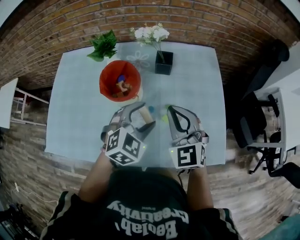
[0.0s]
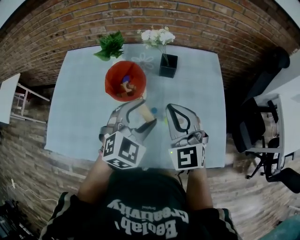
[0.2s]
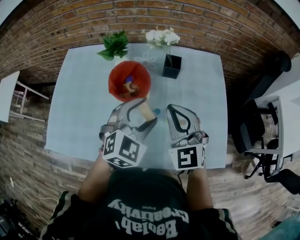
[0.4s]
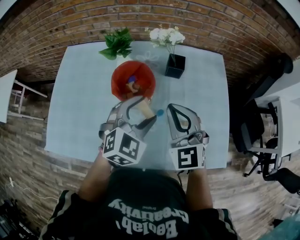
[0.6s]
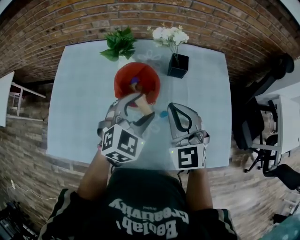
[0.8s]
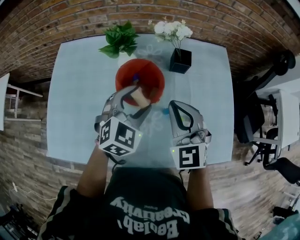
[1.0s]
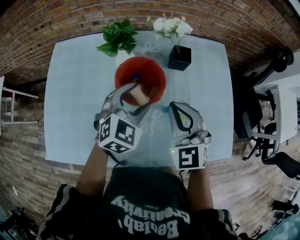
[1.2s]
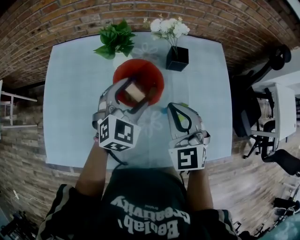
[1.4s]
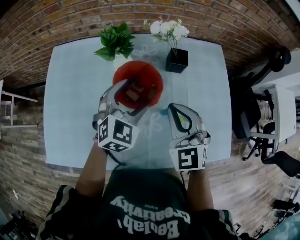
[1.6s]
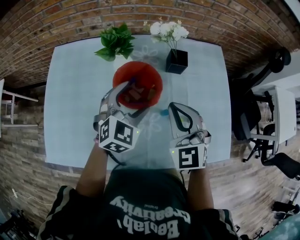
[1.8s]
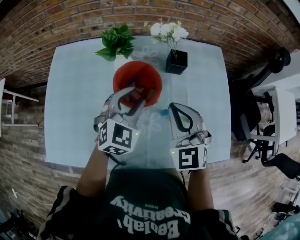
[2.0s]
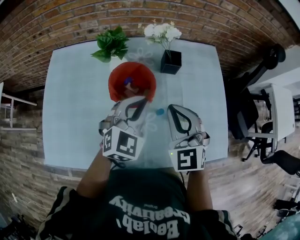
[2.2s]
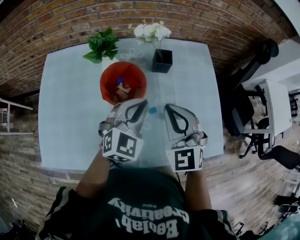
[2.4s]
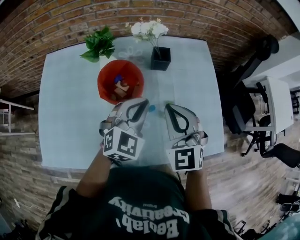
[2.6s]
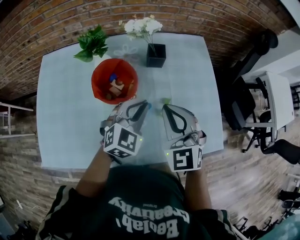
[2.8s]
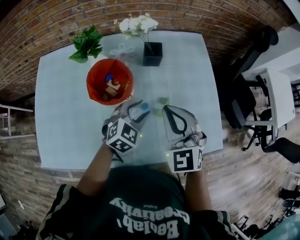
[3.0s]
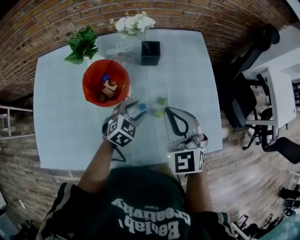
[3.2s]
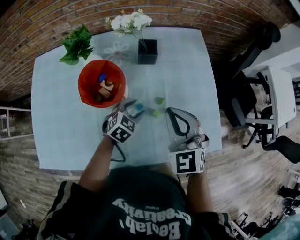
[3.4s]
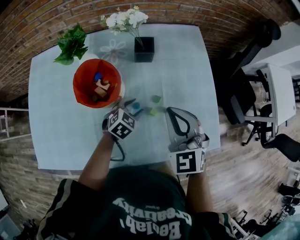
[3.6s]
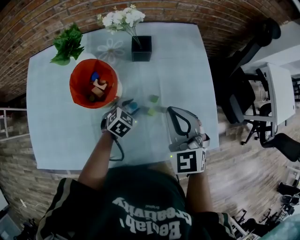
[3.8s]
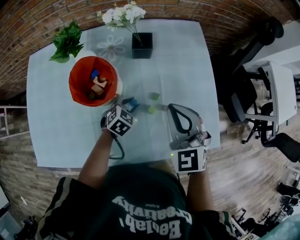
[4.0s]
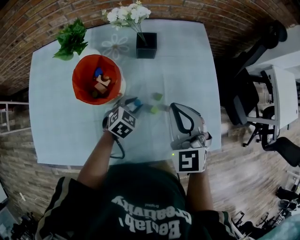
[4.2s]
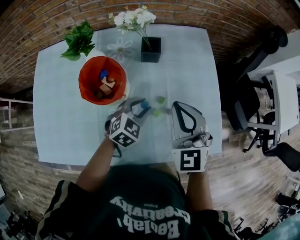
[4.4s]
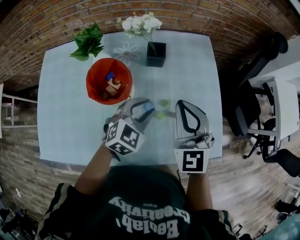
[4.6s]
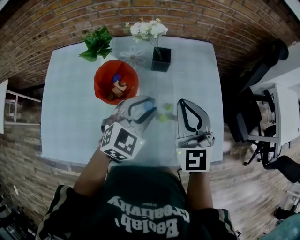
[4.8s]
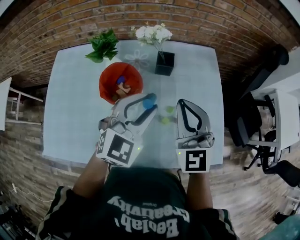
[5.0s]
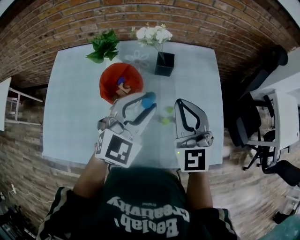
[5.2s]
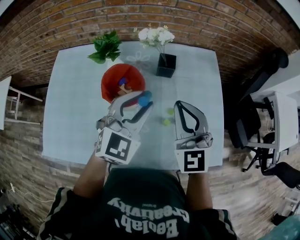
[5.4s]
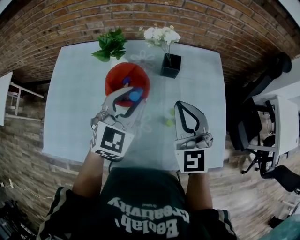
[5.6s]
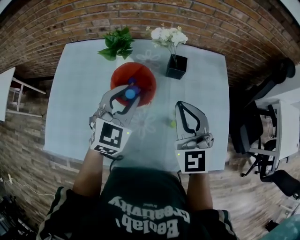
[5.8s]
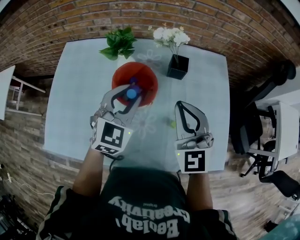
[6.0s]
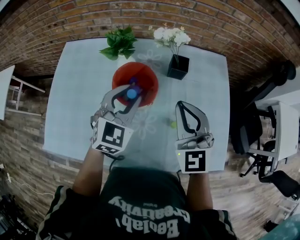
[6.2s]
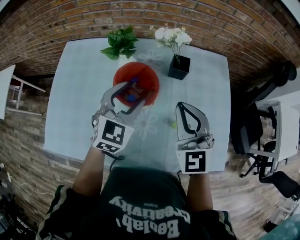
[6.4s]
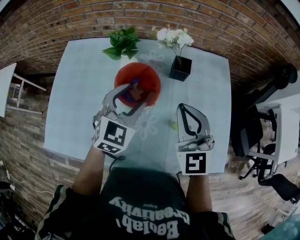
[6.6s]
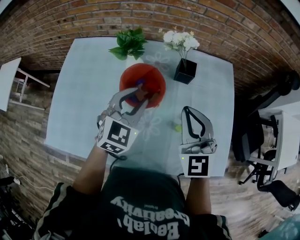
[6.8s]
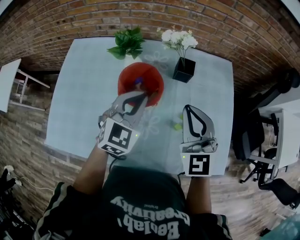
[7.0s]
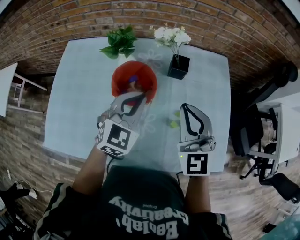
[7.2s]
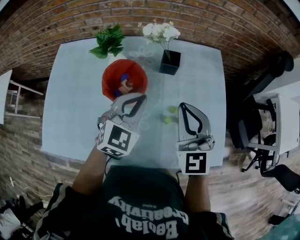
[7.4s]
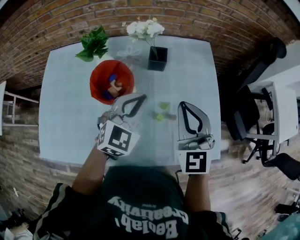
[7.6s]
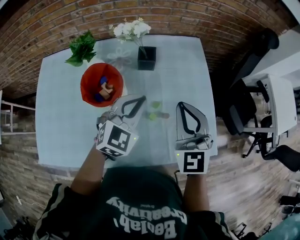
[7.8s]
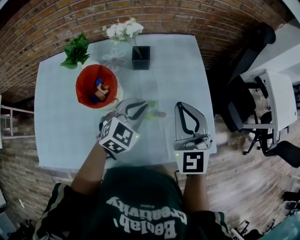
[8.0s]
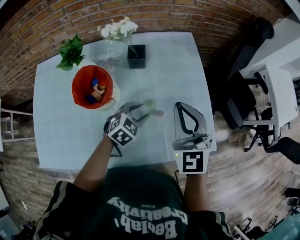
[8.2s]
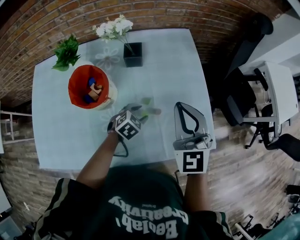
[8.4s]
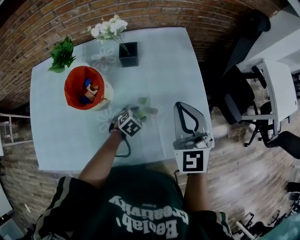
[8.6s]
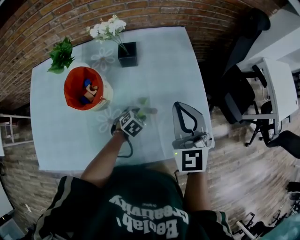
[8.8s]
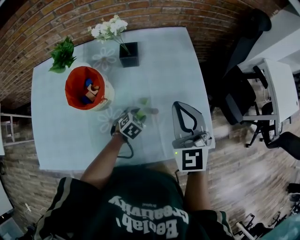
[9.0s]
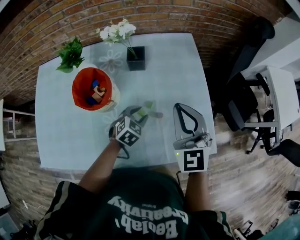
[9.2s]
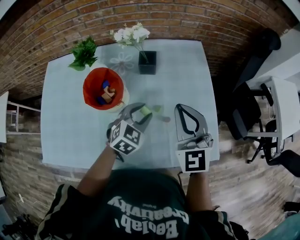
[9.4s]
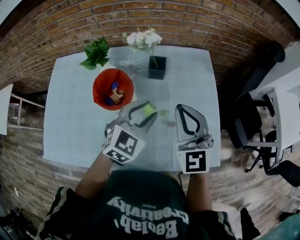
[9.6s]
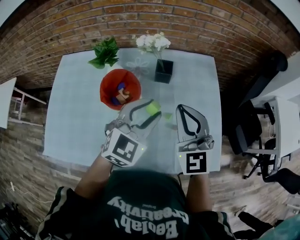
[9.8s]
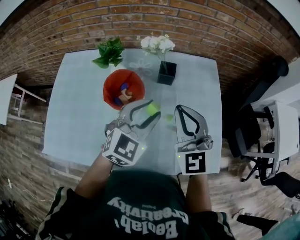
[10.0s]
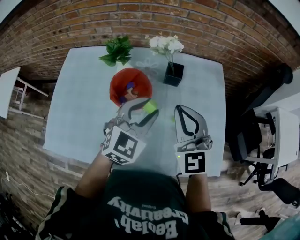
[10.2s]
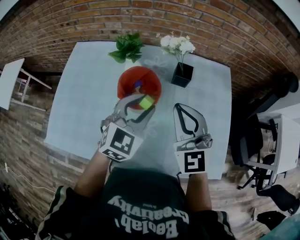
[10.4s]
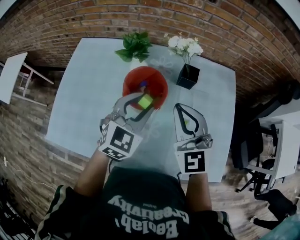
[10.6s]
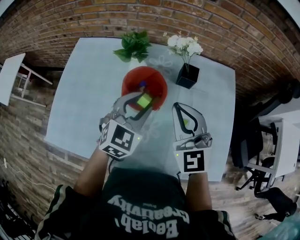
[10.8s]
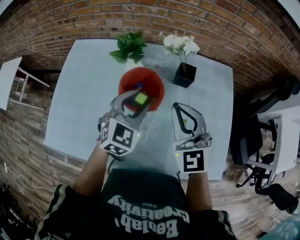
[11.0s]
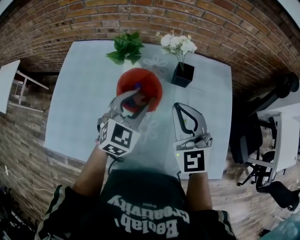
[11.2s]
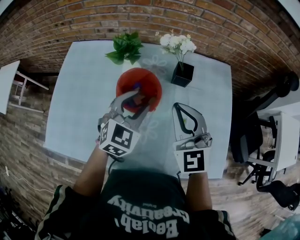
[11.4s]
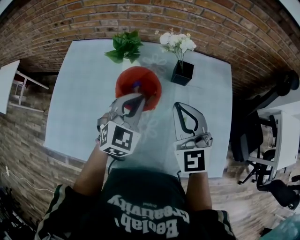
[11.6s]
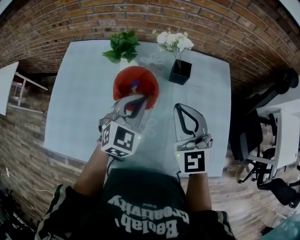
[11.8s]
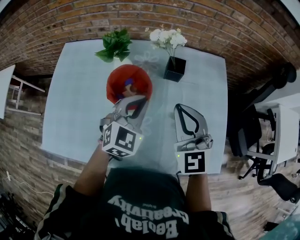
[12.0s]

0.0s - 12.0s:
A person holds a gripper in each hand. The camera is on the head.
0.0s - 1.6s: The right gripper travels to the left by some 10 cm. The left gripper travels to the left and forward by some 20 cm.
1.6s - 3.0s: The right gripper travels to the right by some 10 cm, while the left gripper travels to the right and downward by roughly 15 cm, and closes its fingers.
3.0s - 4.4s: The left gripper travels downward and back again, approximately 15 cm each way; the right gripper moves to the right, approximately 5 cm.
4.4s - 6.0s: The right gripper goes approximately 10 cm to the left and upward; the left gripper shifts approximately 25 cm upward and to the left, and rotates roughly 30 degrees.
6.0s - 7.6s: The two grippers go roughly 10 cm to the right. The left gripper closes.
7.6s - 9.0s: The right gripper travels to the right by roughly 10 cm; the left gripper goes about 25 cm downward, angles its fingers downward, by approximately 40 degrees, and opens up.
9.0s - 10.4s: The right gripper moves to the left, approximately 20 cm, and turns by approximately 20 degrees. The left gripper is displaced upward and to the left by about 35 cm, and points its fingers some 40 degrees further upward.
10.4s - 12.0s: The left gripper closes.

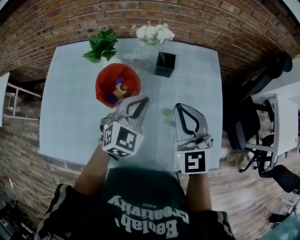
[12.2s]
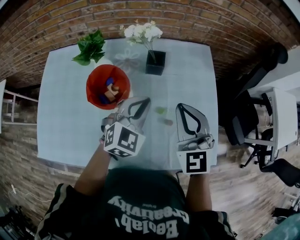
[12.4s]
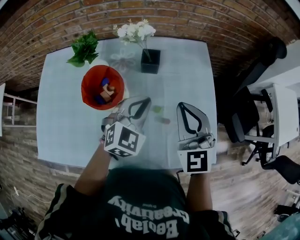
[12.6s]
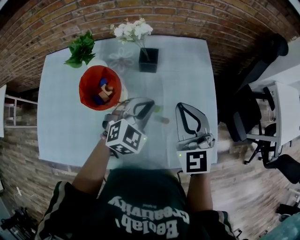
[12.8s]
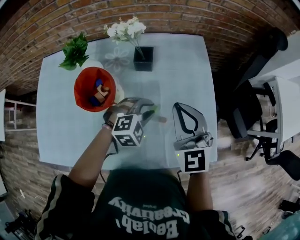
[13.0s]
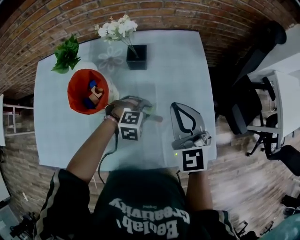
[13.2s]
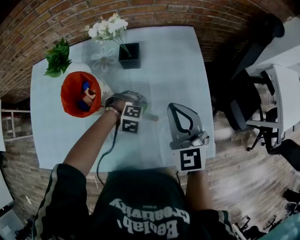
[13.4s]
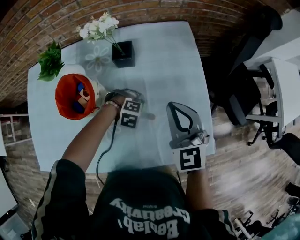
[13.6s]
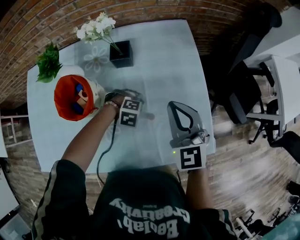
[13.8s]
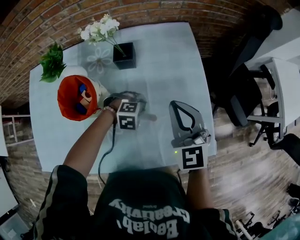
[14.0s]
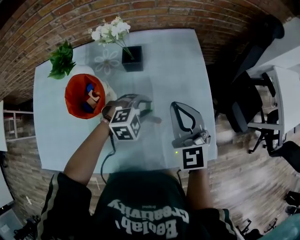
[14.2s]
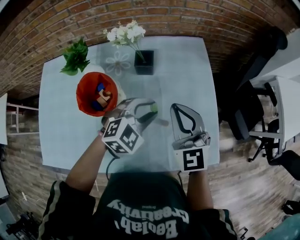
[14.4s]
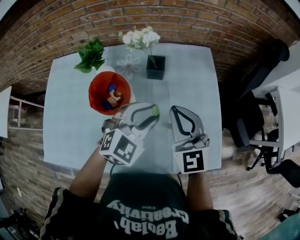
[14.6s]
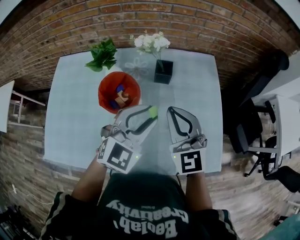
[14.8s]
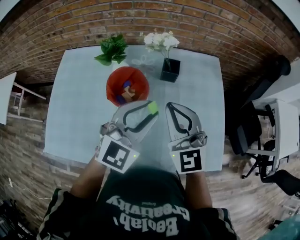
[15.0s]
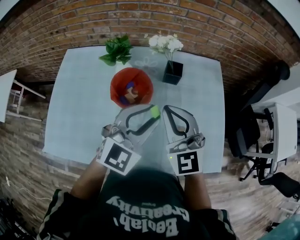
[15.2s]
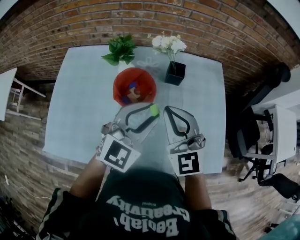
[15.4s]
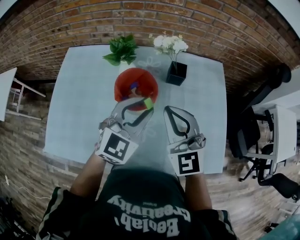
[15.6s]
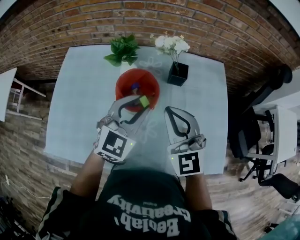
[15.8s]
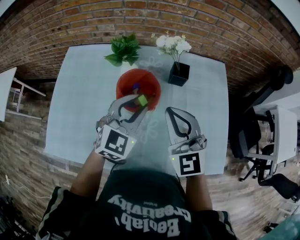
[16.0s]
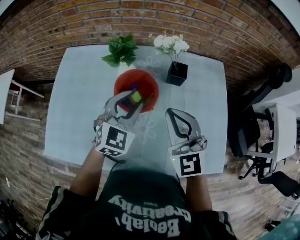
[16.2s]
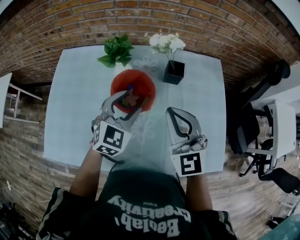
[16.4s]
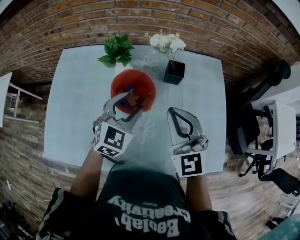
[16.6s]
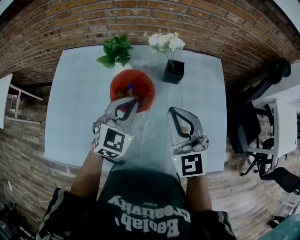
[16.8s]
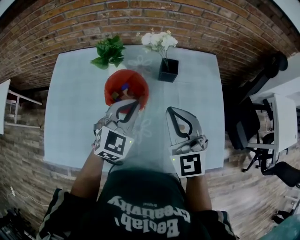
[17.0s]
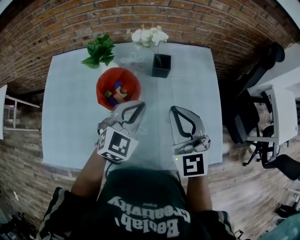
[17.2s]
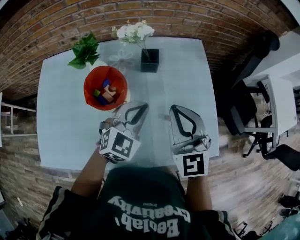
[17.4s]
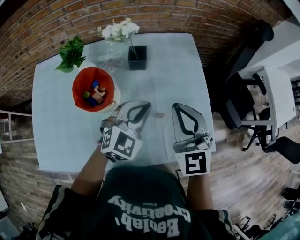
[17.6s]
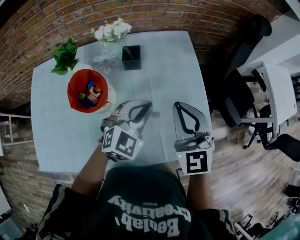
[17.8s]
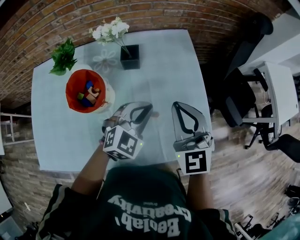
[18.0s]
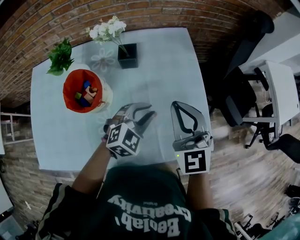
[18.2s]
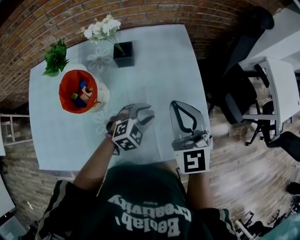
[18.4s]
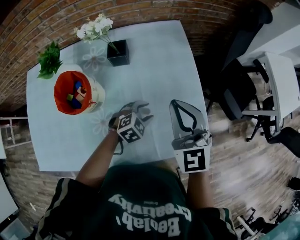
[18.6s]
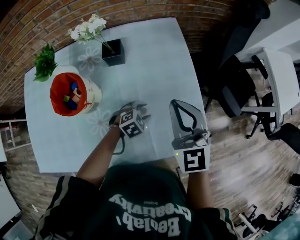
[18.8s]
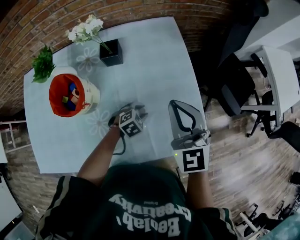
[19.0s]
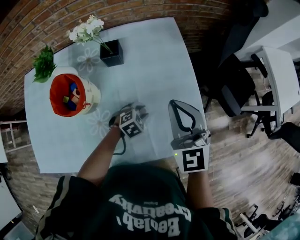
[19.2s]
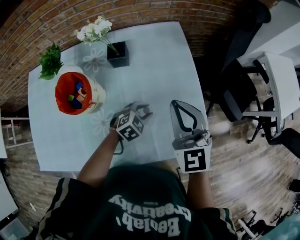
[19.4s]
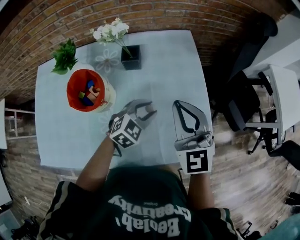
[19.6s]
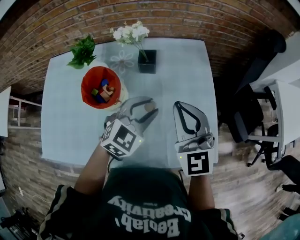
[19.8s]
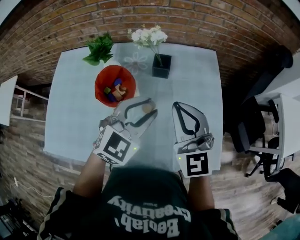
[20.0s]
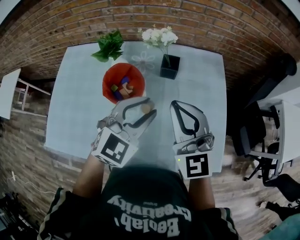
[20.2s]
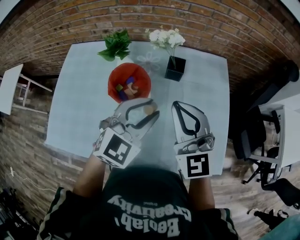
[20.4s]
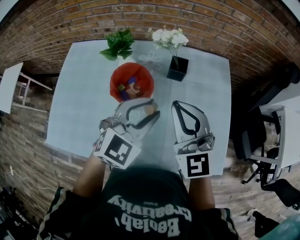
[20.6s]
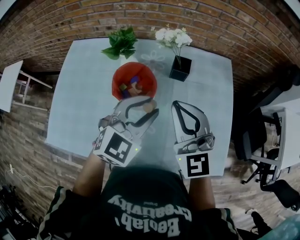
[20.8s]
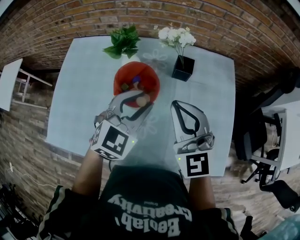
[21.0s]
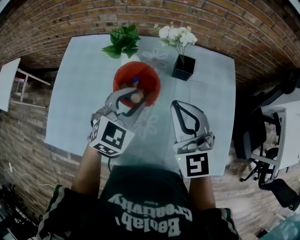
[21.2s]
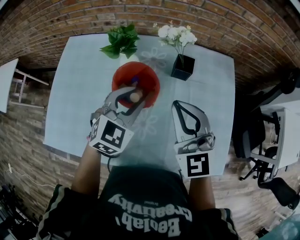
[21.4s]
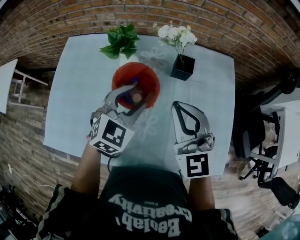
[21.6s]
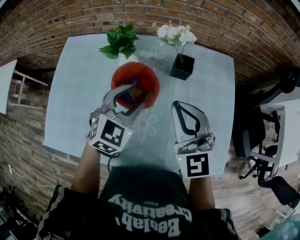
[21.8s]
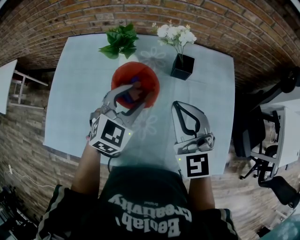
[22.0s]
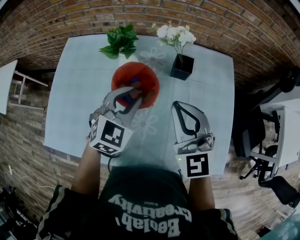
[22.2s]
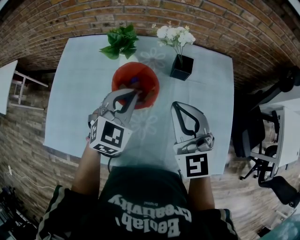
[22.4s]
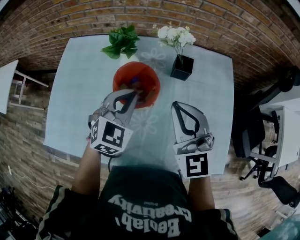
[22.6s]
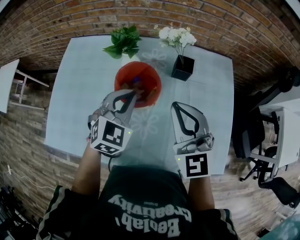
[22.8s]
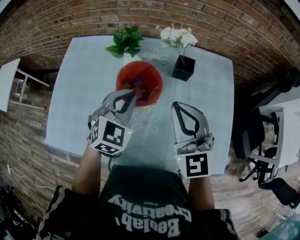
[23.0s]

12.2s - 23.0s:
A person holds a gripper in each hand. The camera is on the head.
12.2s - 13.8s: The left gripper heads downward, covering about 25 cm, angles its fingers downward, by some 50 degrees, and opens. Meanwhile the right gripper changes place by approximately 20 cm.
13.8s - 15.2s: The right gripper ends up about 25 cm from where it was, and turns by approximately 20 degrees, while the left gripper goes some 35 cm upward, and angles its fingers upward, by roughly 70 degrees.
15.2s - 16.8s: The left gripper shifts roughly 15 cm to the left, downward and forward, and closes its fingers.
16.8s - 18.4s: The right gripper goes about 20 cm to the right, while the left gripper travels to the right and downward by about 35 cm, swivels some 40 degrees, and opens its fingers.
18.4s - 20.0s: The right gripper moves to the left and upward, roughly 10 cm; the left gripper shifts approximately 25 cm upward and to the left, and turns by approximately 30 degrees.
20.0s - 21.4s: Both grippers travel together to the left, approximately 15 cm.
21.4s - 23.0s: The left gripper closes its fingers.

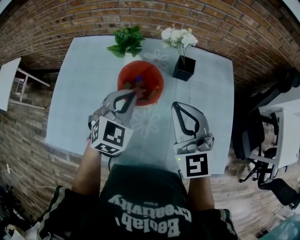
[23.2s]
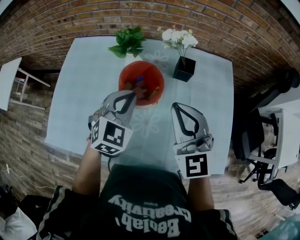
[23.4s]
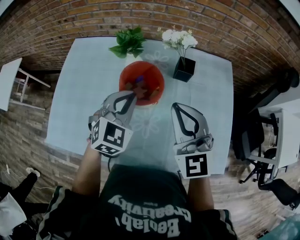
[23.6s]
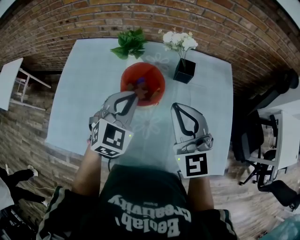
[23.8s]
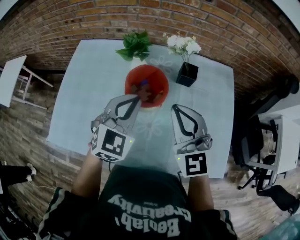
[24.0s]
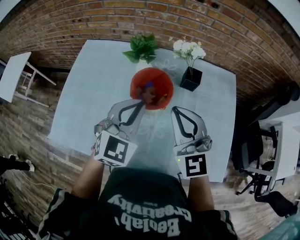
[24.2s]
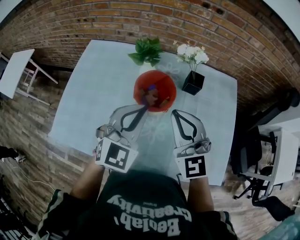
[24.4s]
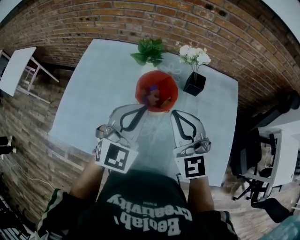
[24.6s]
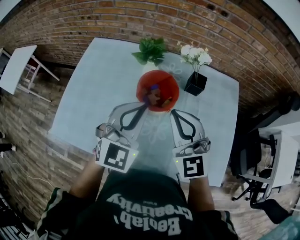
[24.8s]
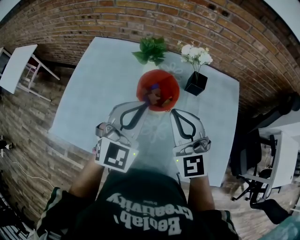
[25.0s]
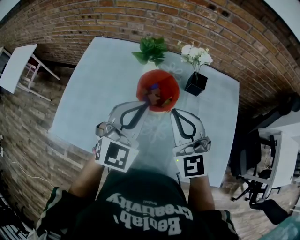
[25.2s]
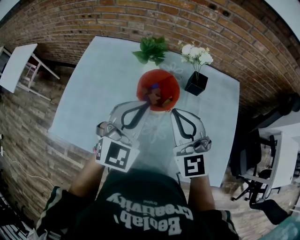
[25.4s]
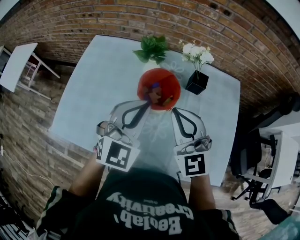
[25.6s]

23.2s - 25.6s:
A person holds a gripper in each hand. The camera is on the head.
23.2s - 24.4s: The left gripper goes some 10 cm upward and backward. The right gripper shifts by roughly 5 cm.
24.4s - 25.6s: The grippers move only a little.
